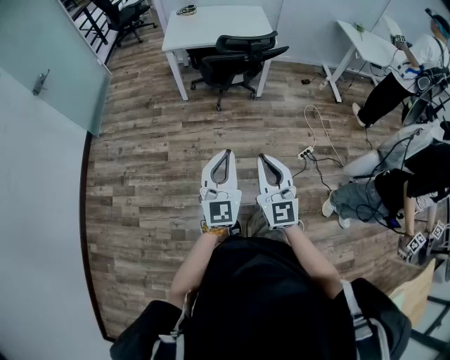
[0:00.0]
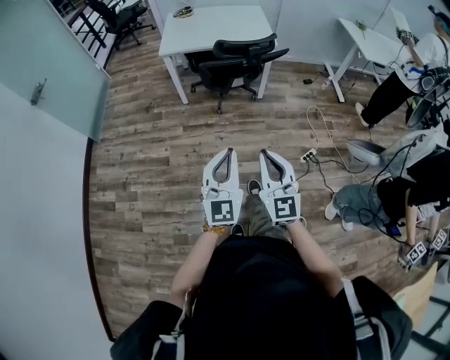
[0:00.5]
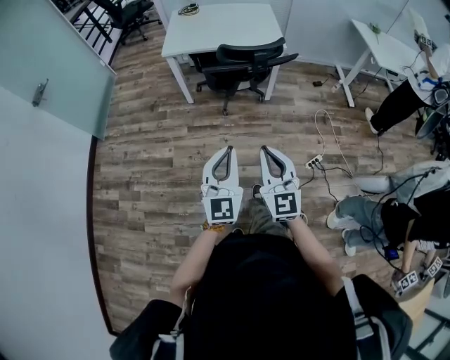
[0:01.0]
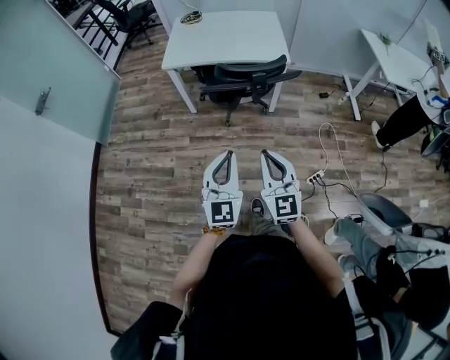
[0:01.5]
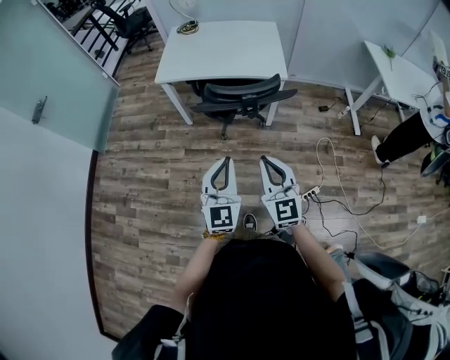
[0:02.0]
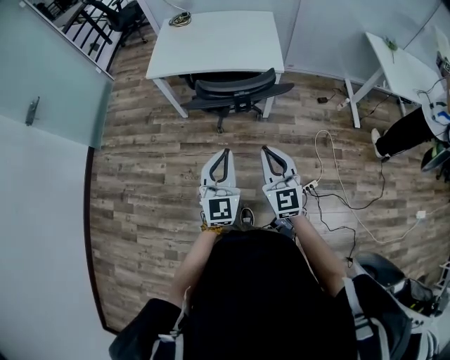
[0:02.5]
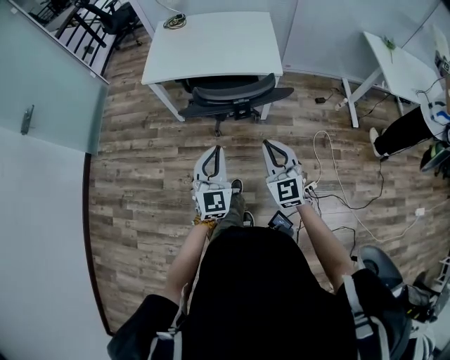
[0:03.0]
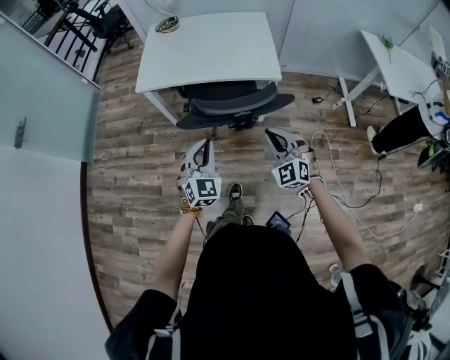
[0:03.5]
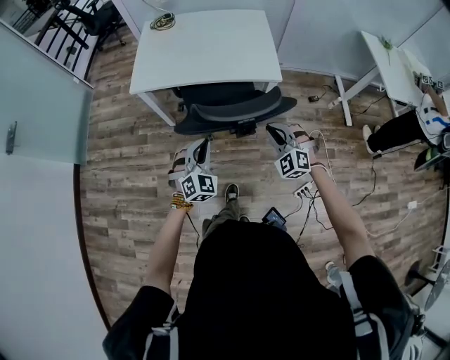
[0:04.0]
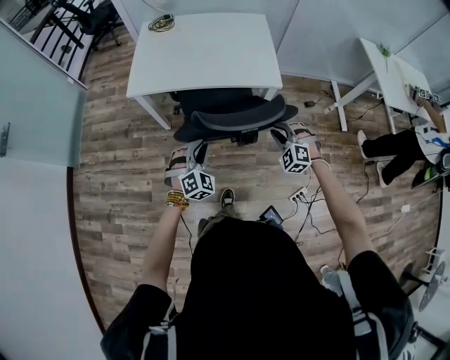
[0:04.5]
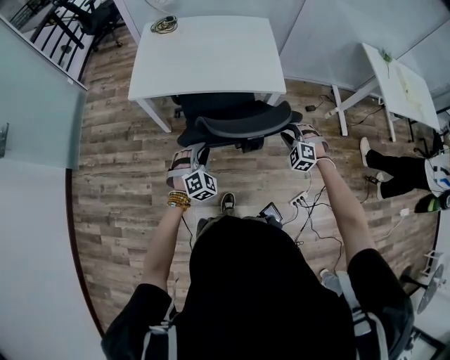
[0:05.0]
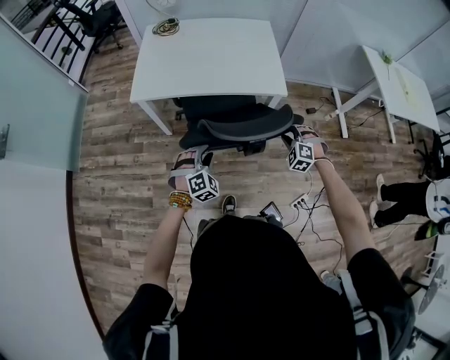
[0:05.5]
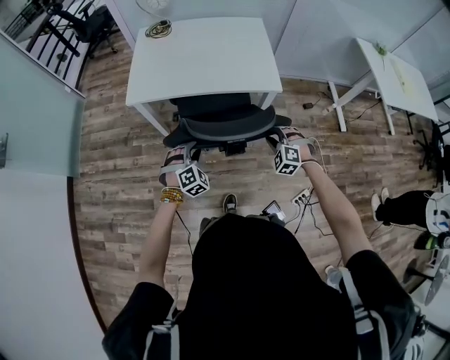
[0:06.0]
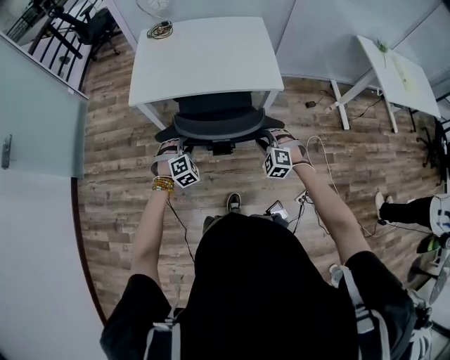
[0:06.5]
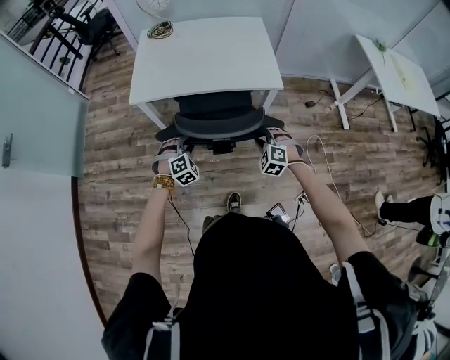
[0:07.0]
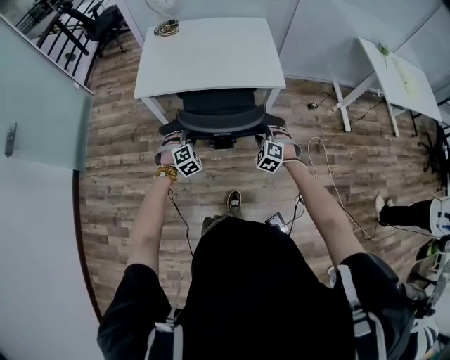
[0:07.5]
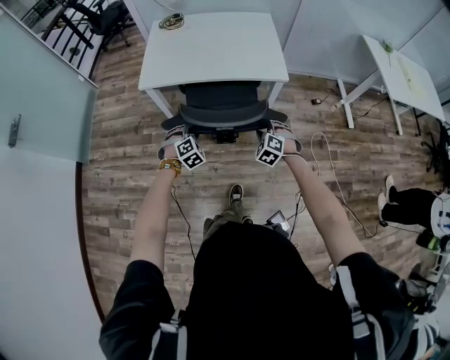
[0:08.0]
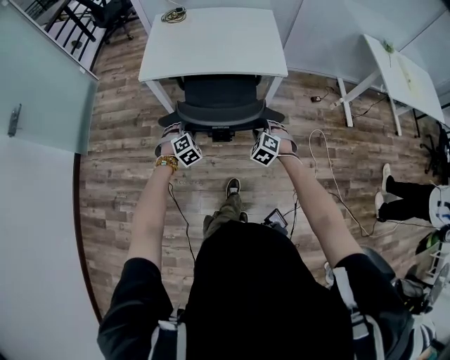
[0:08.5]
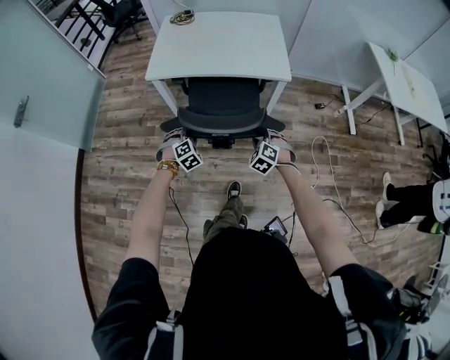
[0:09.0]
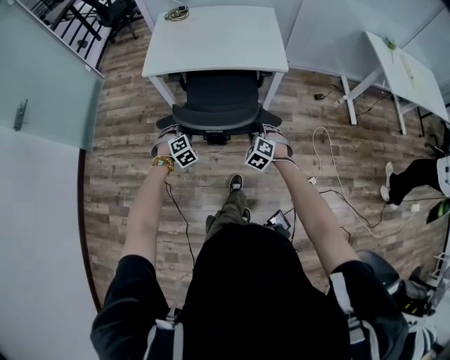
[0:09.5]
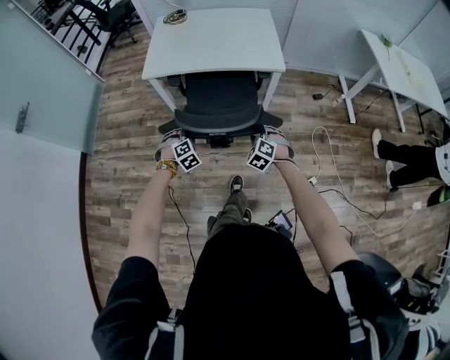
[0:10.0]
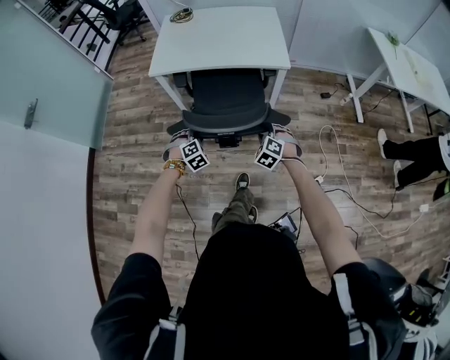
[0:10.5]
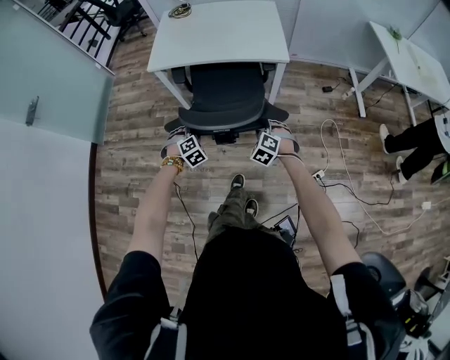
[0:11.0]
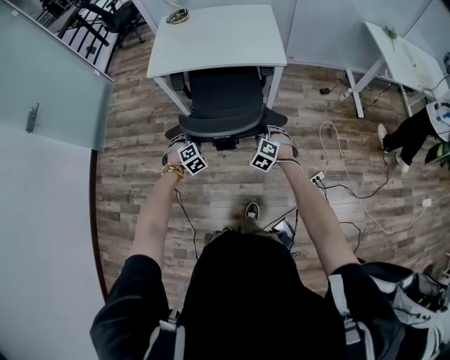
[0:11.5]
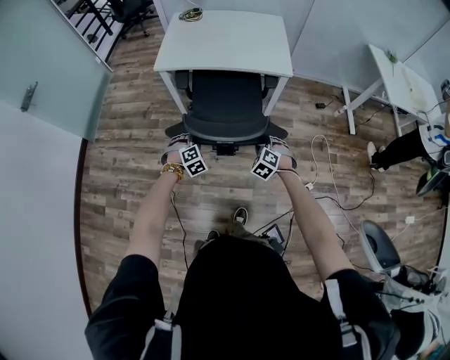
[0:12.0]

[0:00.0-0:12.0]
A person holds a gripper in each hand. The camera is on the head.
0:00.0 to 0:02.0: Both grippers move forward and to the right, some 35 cm.
0:02.0 to 0:04.0: Both grippers travel together forward and downward, roughly 30 cm. The left gripper turns by roughly 40 degrees. Meanwhile the right gripper rolls counterclockwise, seen from behind, by approximately 40 degrees.
0:04.0 to 0:06.0: The two grippers go about 10 cm downward and forward. The right gripper rotates about 20 degrees. The left gripper changes its angle by about 20 degrees, and opens up.
0:06.0 to 0:08.0: The left gripper moves approximately 5 cm. Meanwhile the right gripper travels to the left by about 5 cm.
0:08.0 to 0:10.0: Both grippers move backward, about 10 cm.
0:10.0 to 0:12.0: Both grippers travel together backward, some 5 cm.

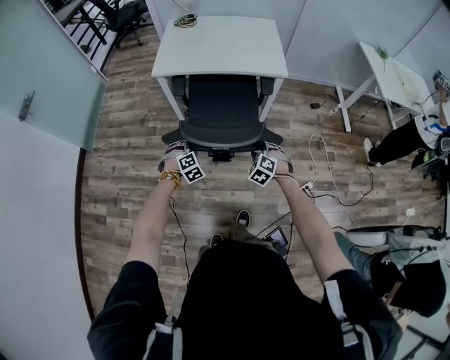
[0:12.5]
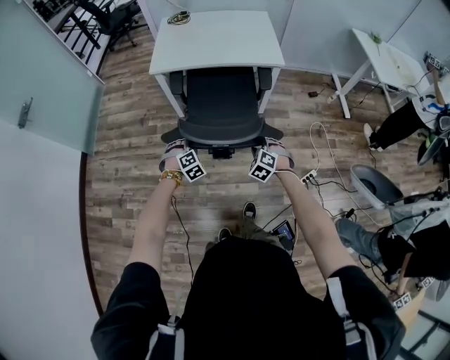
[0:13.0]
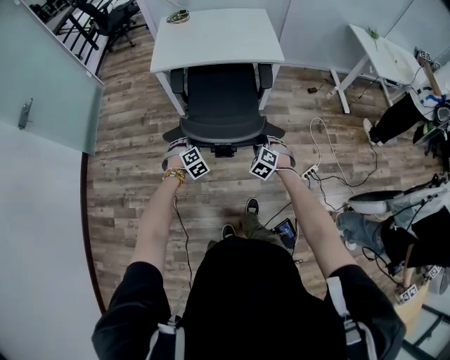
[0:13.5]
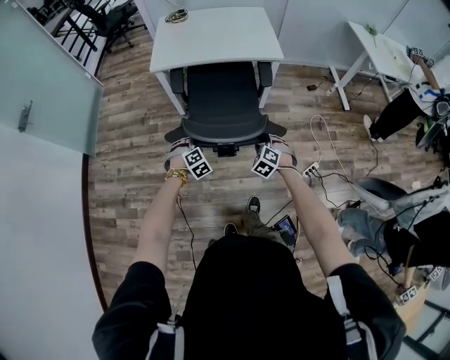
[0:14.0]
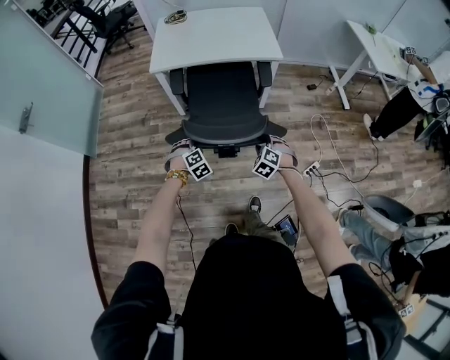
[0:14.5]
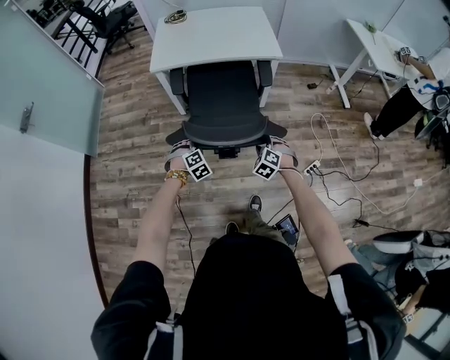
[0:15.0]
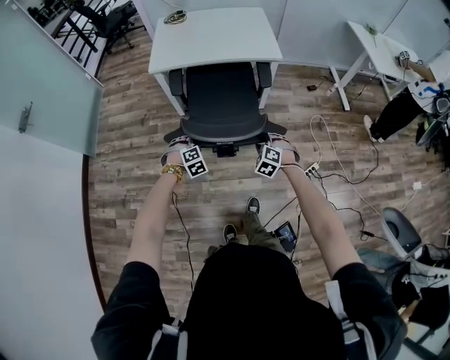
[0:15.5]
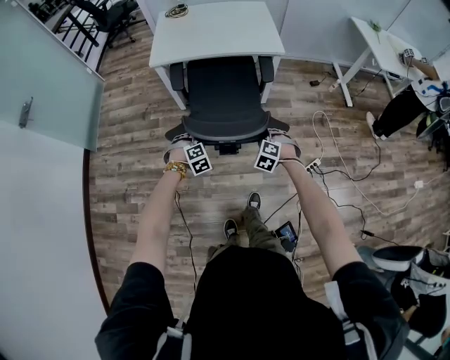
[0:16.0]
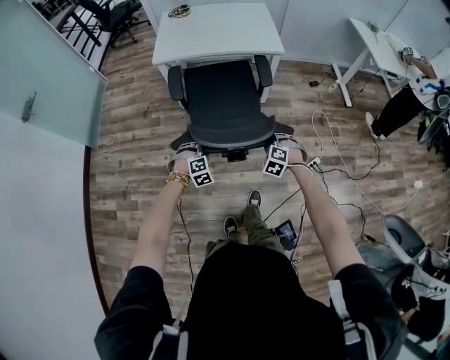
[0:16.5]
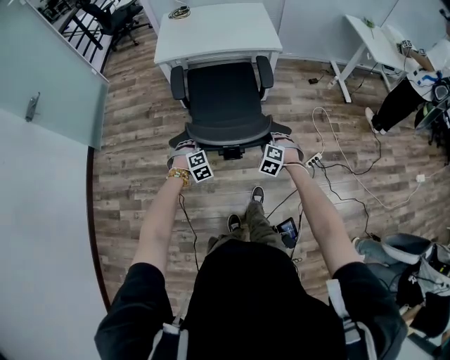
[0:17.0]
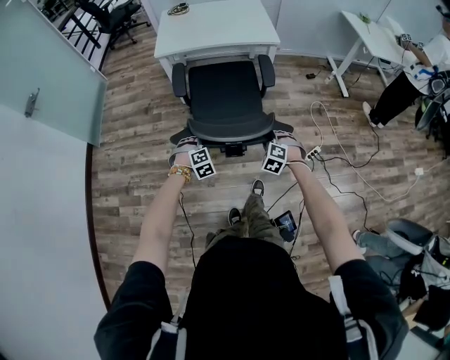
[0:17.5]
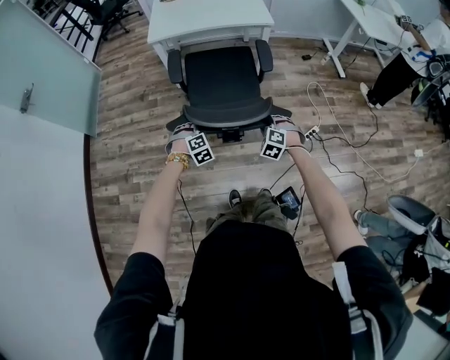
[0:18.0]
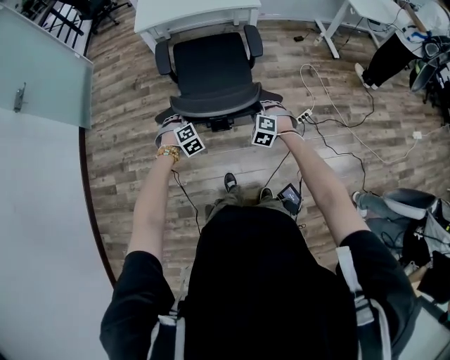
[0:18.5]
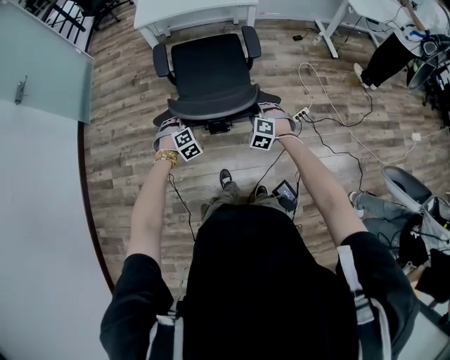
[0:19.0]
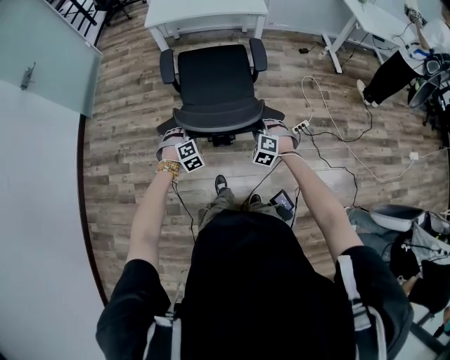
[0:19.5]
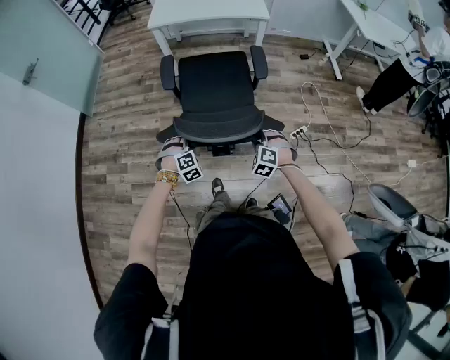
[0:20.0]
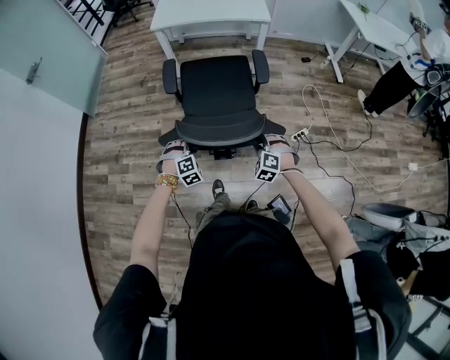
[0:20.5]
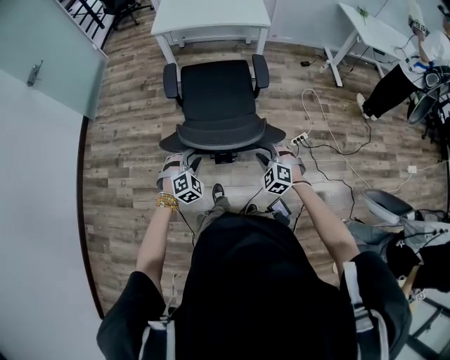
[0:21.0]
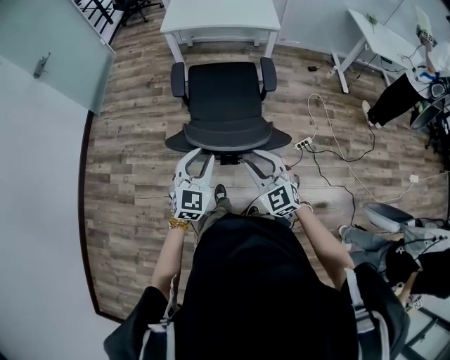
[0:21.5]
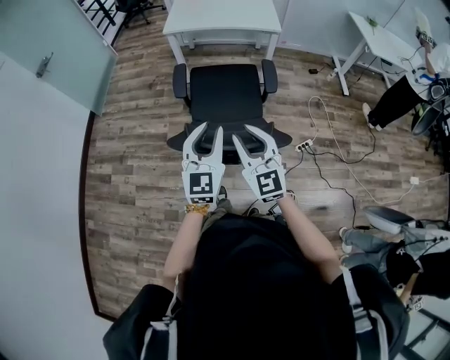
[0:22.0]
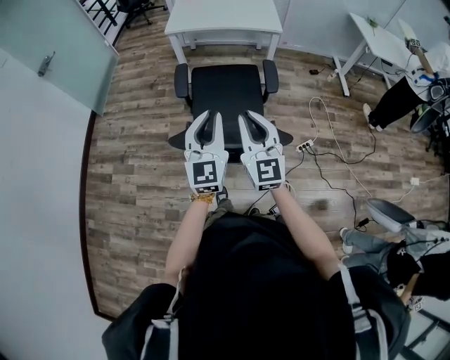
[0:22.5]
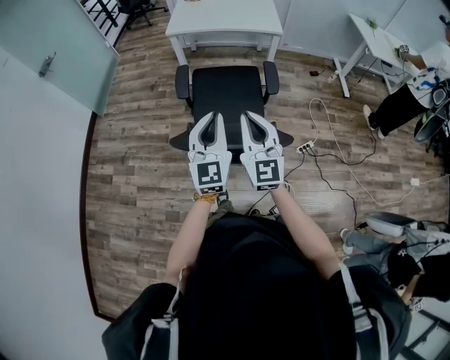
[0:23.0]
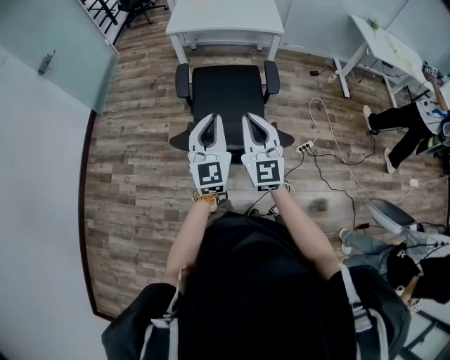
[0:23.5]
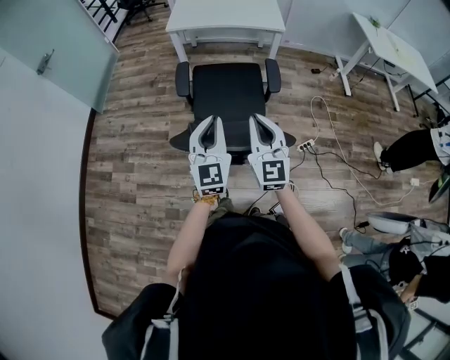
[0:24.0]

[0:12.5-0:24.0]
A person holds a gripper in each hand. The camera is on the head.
0:12.5 to 0:14.5: Both grippers move backward, approximately 5 cm.
0:14.5 to 0:16.5: Both grippers move backward, about 5 cm.
0:16.5 to 0:18.5: The two grippers go roughly 15 cm backward.
0:18.5 to 0:20.0: The two grippers go about 10 cm backward.
0:20.0 to 0:22.0: The two grippers go approximately 30 cm upward. The right gripper angles its fingers upward, by some 50 degrees, while the left gripper points its fingers approximately 50 degrees further upward.
0:22.0 to 0:24.0: The right gripper closes its fingers. The left gripper closes its fingers.

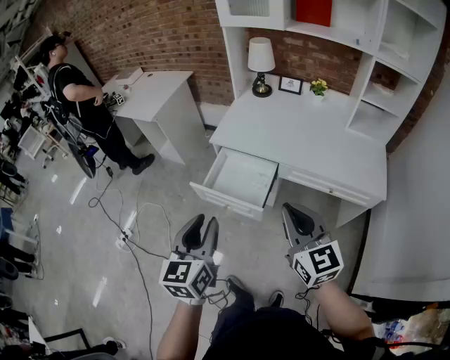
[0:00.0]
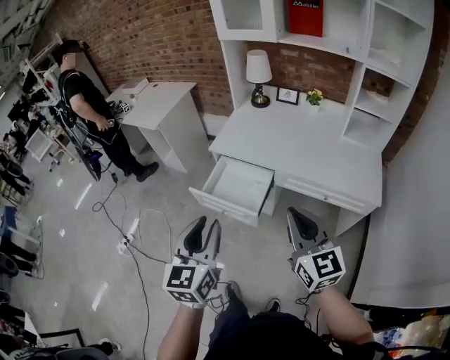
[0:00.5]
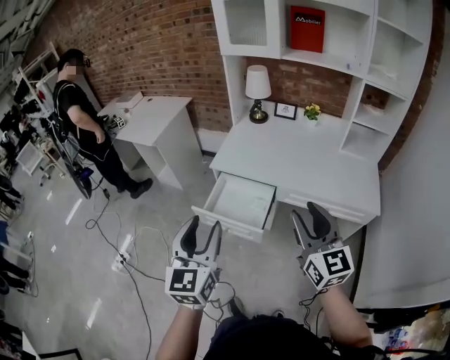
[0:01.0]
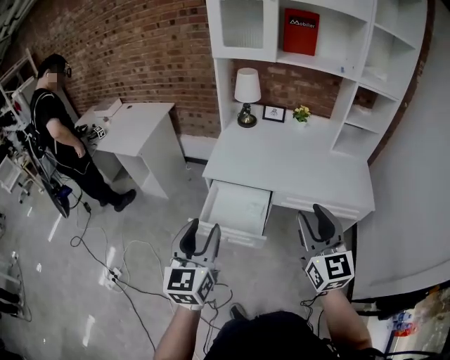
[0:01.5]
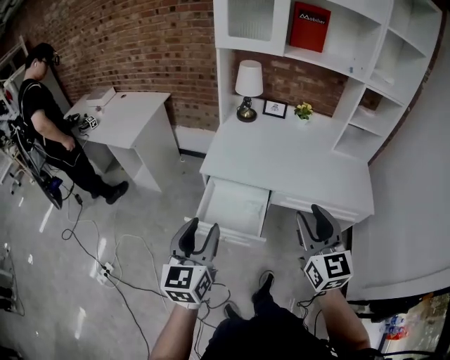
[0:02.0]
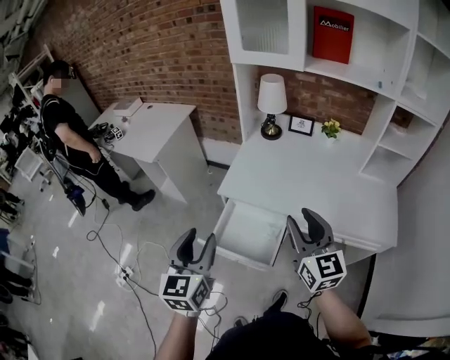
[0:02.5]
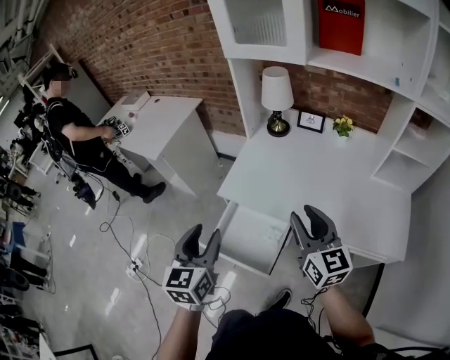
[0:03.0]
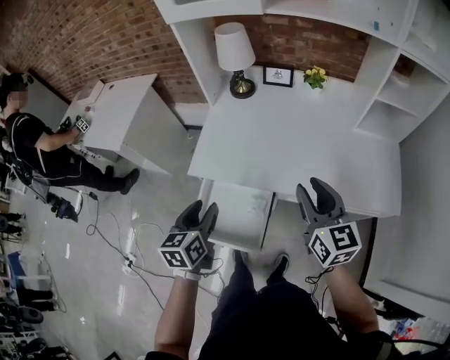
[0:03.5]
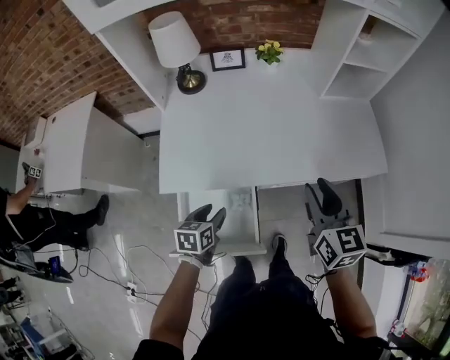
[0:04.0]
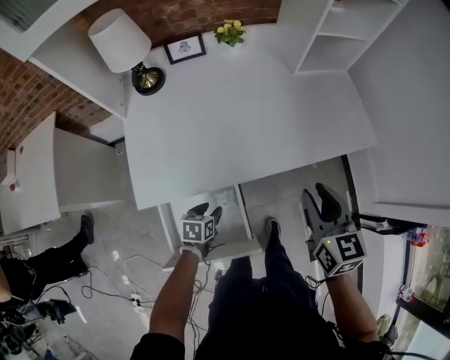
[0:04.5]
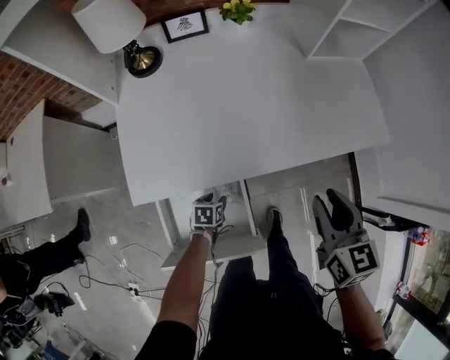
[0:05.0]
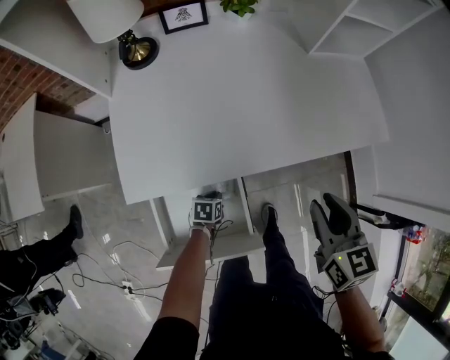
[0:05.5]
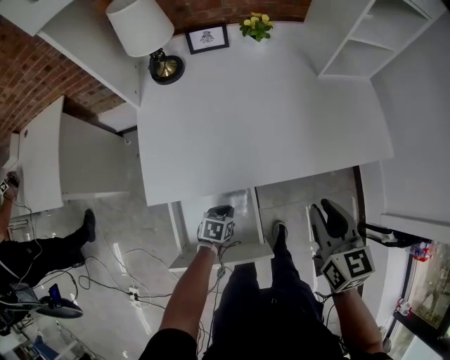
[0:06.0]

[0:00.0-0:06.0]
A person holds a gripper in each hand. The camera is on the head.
0:00.0 to 0:02.0: The right gripper goes about 10 cm forward, and opens, while the left gripper travels forward and to the left by roughly 15 cm.
0:02.0 to 0:04.0: The left gripper is displaced downward by about 30 cm, and points its fingers about 40 degrees further downward; the right gripper moves roughly 30 cm, and turns by some 30 degrees.
0:04.0 to 0:06.0: The right gripper shifts about 5 cm downward; the left gripper is displaced downward by roughly 20 cm, changes its angle by about 20 degrees, and closes.
